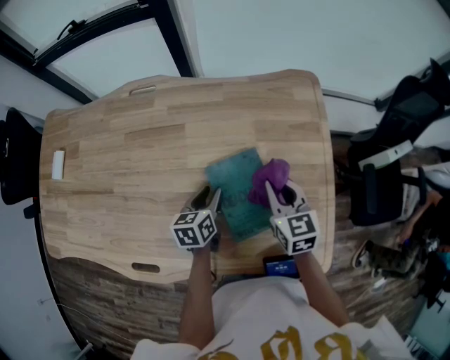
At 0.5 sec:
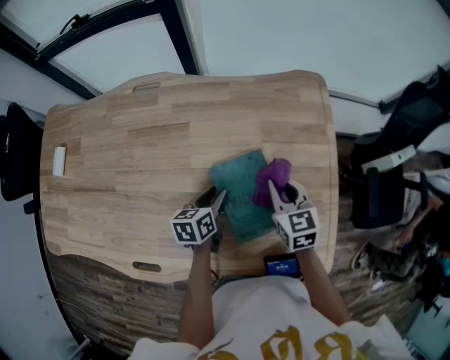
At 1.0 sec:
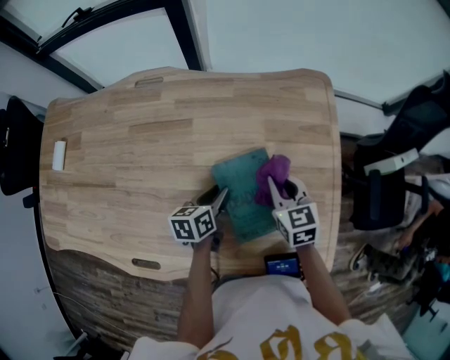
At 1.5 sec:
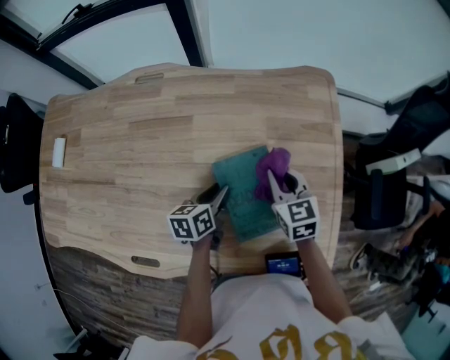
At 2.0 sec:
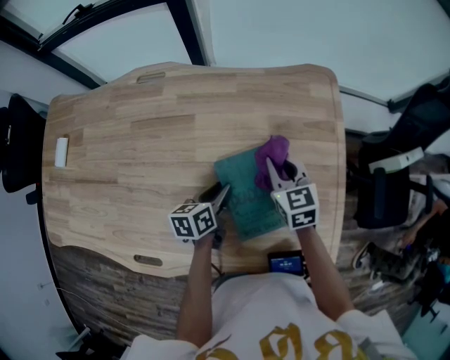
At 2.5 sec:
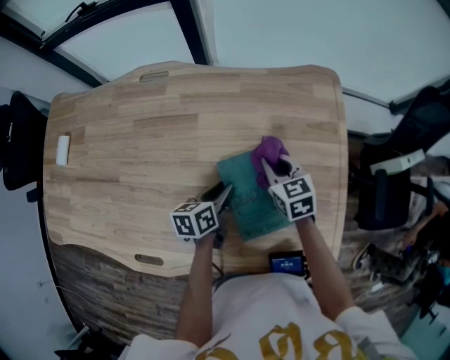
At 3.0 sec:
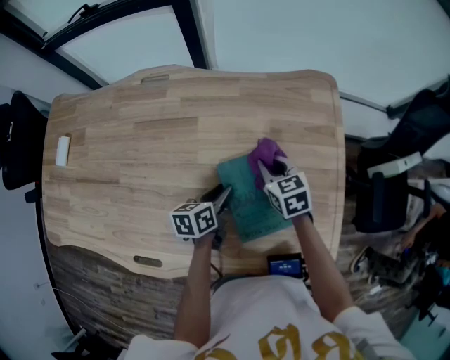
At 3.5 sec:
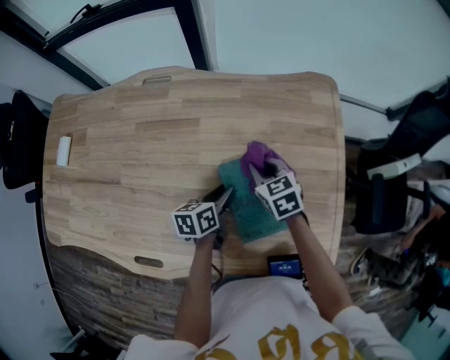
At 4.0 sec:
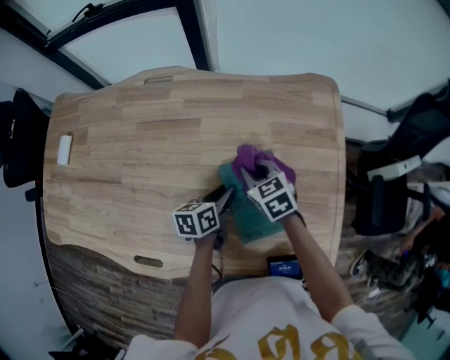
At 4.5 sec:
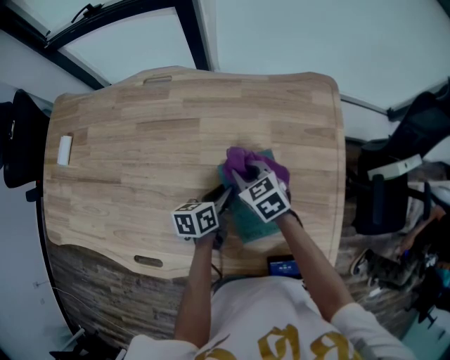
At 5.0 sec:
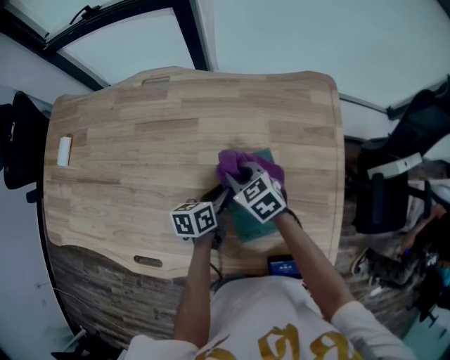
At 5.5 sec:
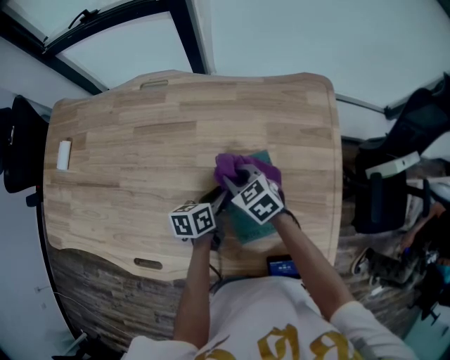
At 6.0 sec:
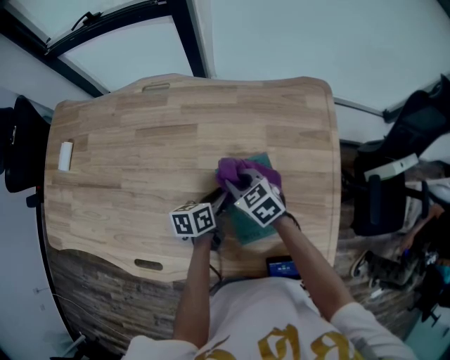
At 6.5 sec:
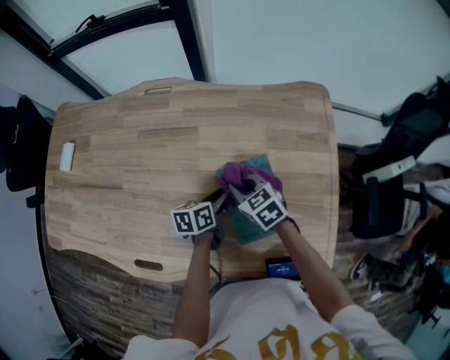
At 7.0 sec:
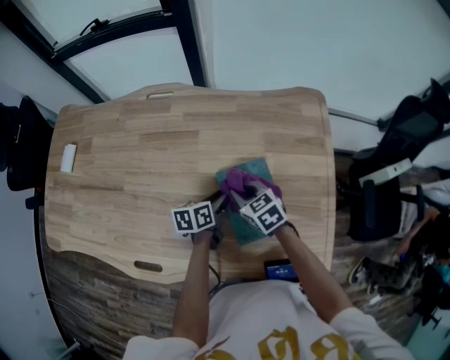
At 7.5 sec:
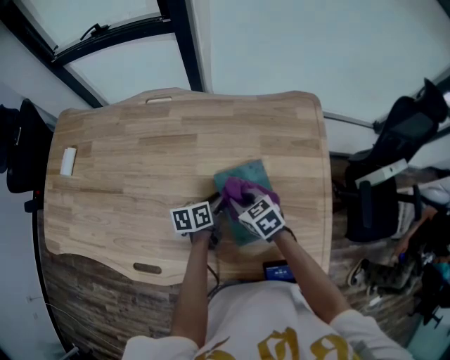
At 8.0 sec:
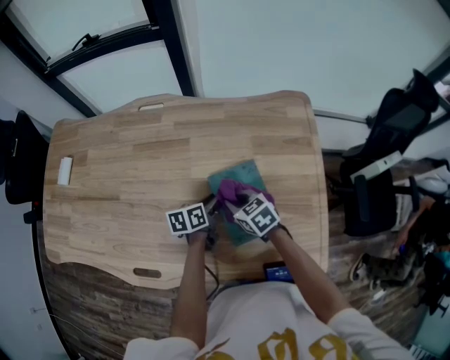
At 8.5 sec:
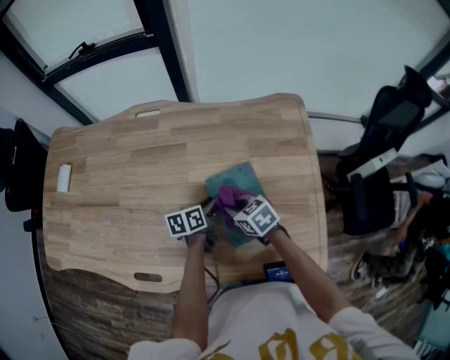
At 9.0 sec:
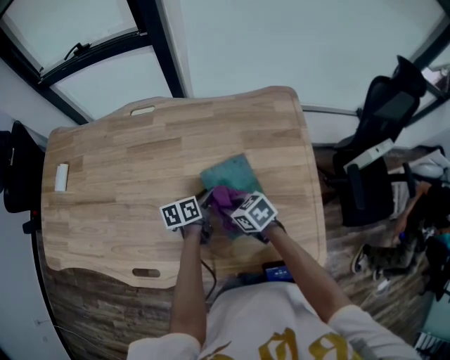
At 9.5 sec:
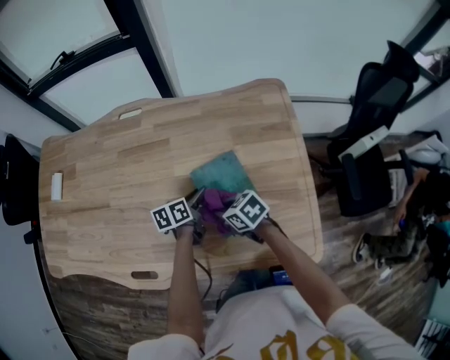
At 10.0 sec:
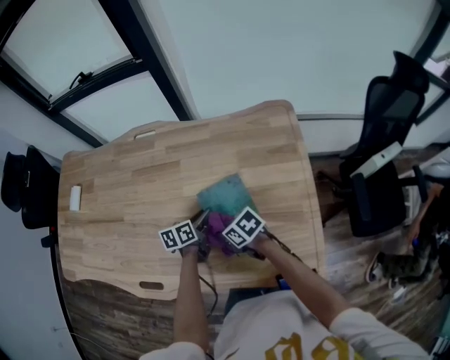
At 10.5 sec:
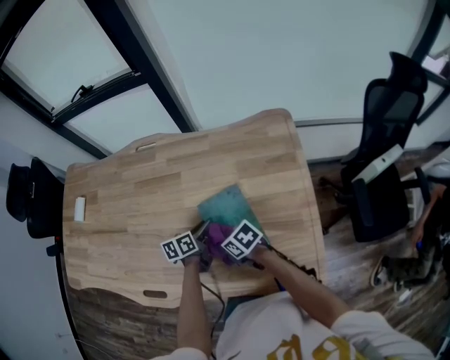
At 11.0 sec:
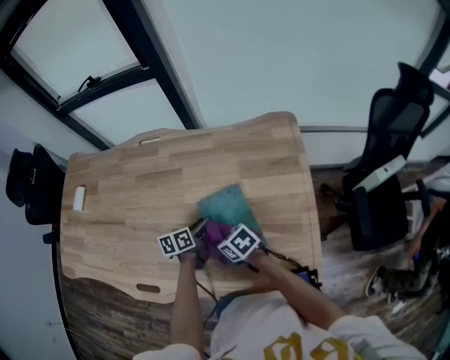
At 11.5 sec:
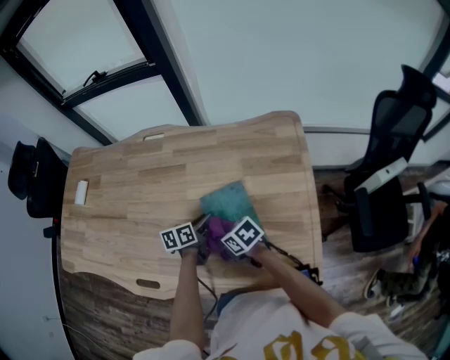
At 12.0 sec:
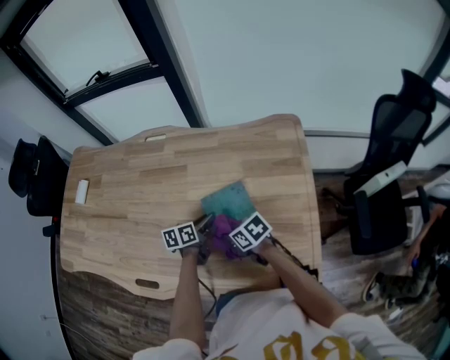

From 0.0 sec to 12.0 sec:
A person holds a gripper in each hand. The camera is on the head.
From 0.0 sec to 2.0 sec: The right gripper travels forward by some 5 cm.
From 2.0 sec to 4.0 sec: The right gripper goes approximately 10 cm to the left.
From 4.0 sec to 6.0 sec: There are only small adjustments of the grippers.
From 6.0 sec to 8.0 sec: The right gripper changes place by approximately 5 cm.
From 8.0 sec to 10.0 sec: The right gripper is displaced backward by about 5 cm, and turns by approximately 20 degrees.
From 10.0 sec to 12.0 sec: The grippers make only small movements.

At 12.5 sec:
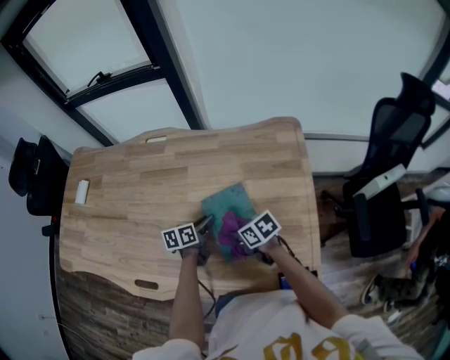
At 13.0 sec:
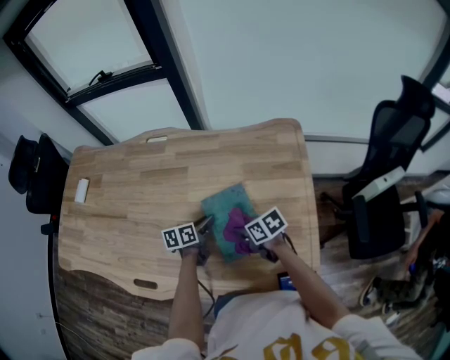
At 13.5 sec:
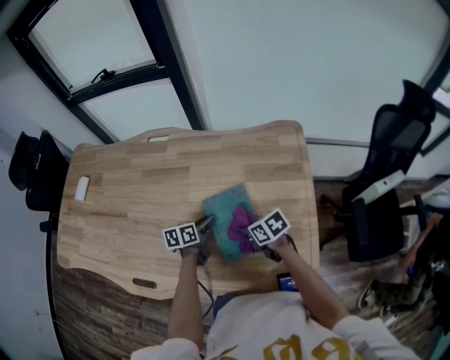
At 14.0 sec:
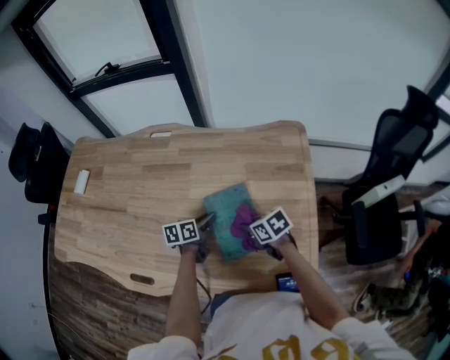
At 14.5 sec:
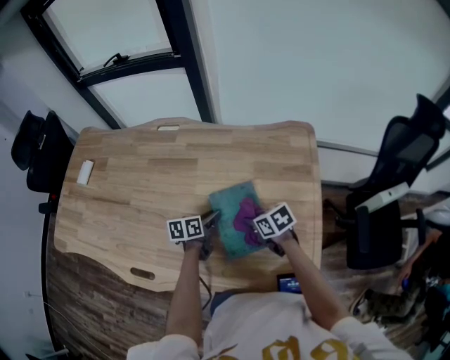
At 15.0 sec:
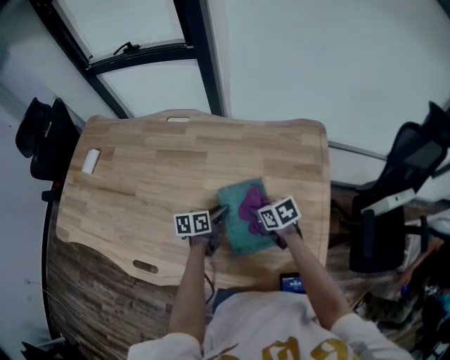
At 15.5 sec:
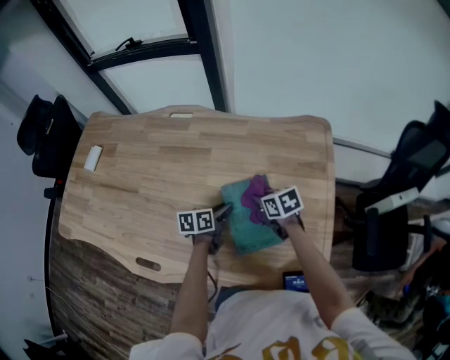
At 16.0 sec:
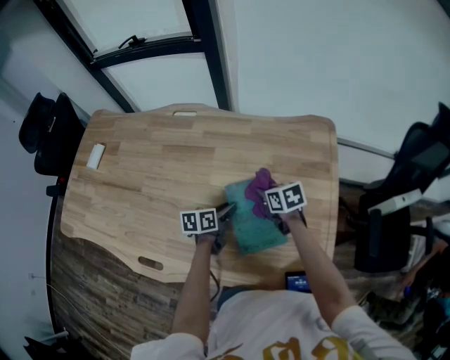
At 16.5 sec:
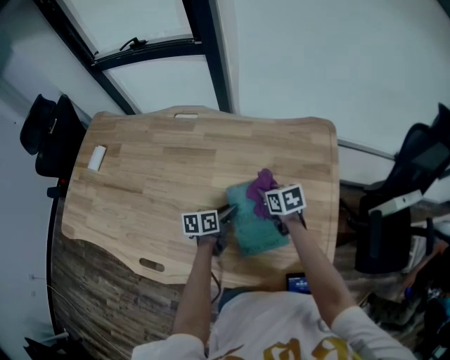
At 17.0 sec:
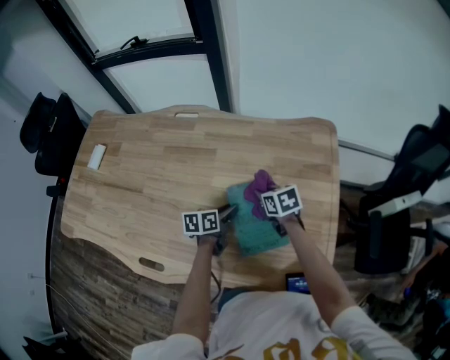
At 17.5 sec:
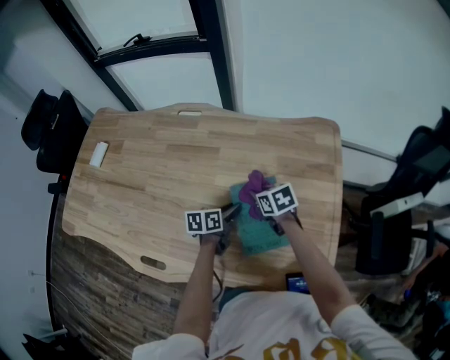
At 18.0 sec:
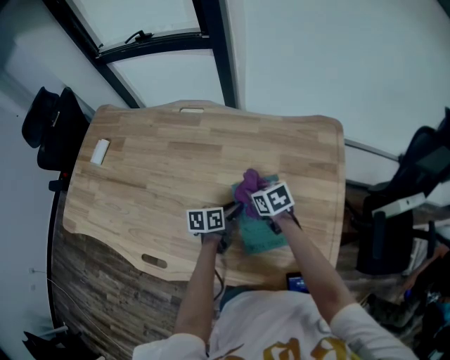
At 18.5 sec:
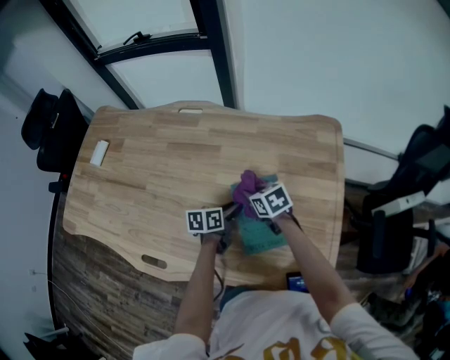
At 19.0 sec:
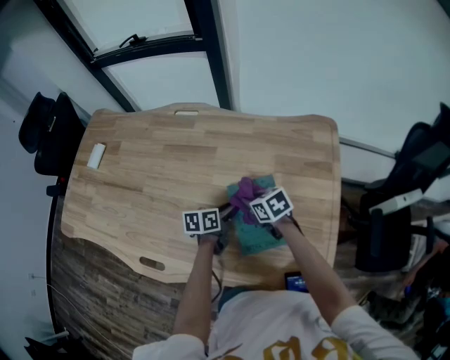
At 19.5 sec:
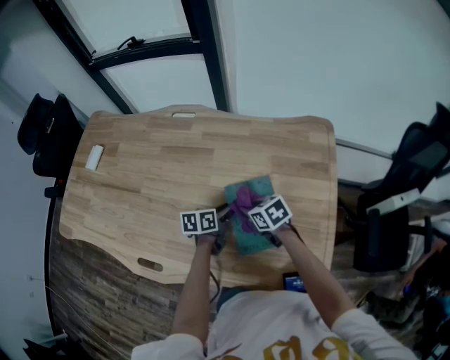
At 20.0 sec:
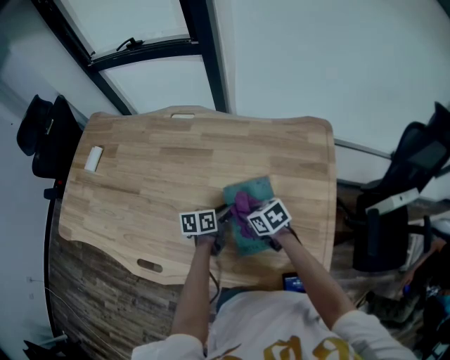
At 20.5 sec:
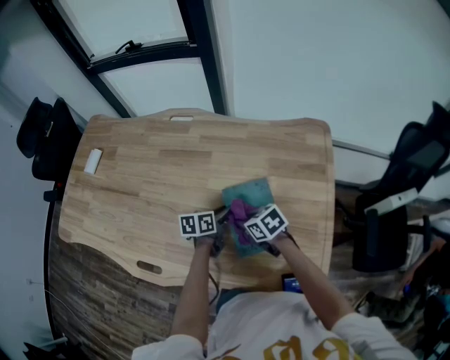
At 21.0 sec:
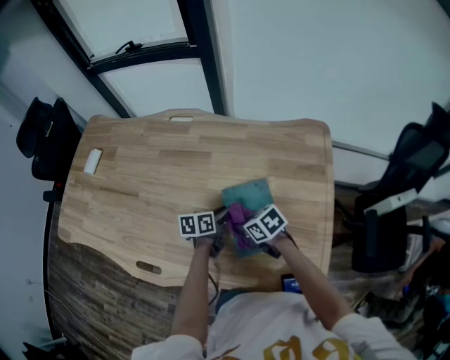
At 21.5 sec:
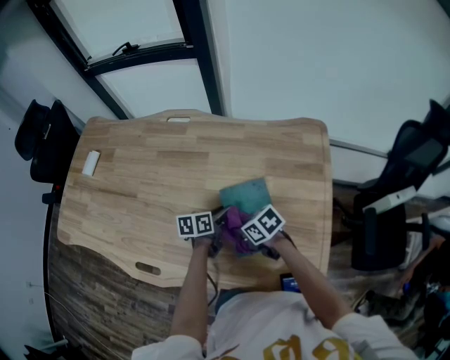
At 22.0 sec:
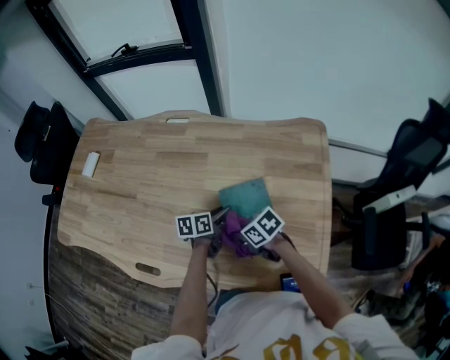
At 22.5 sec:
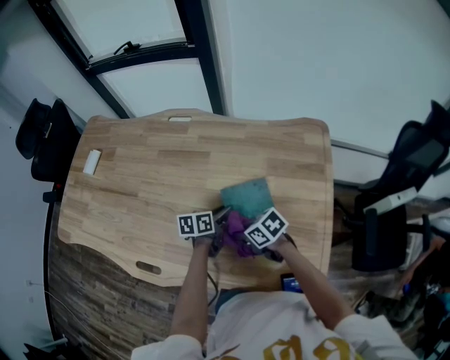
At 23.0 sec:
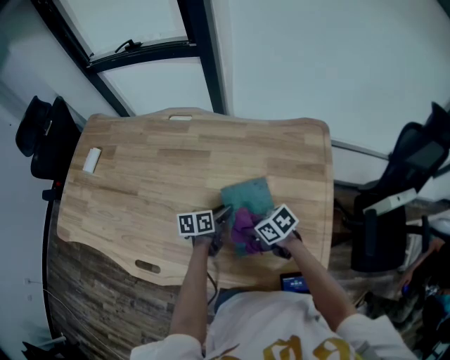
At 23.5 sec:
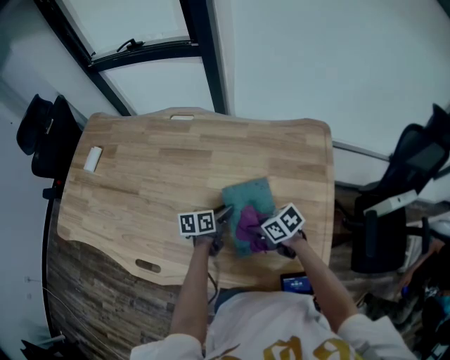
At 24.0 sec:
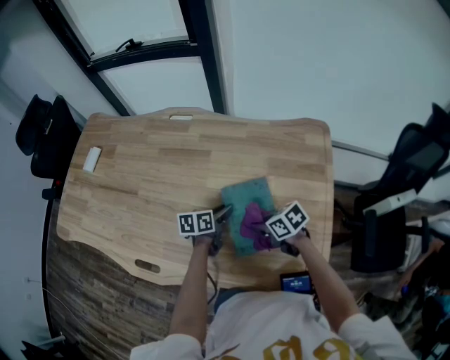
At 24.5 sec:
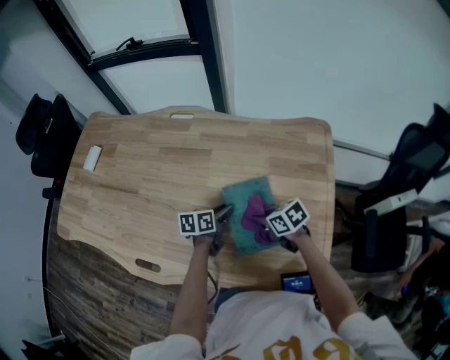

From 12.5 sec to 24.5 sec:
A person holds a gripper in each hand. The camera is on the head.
From 12.5 sec to 14.5 sec: The right gripper moves roughly 5 cm.
From 14.5 sec to 16.5 sec: The right gripper is displaced forward by approximately 10 cm.
From 16.5 sec to 18.5 sec: The right gripper travels to the left by about 5 cm.
From 18.5 sec to 20.5 sec: The right gripper moves backward, approximately 10 cm.
From 20.5 sec to 22.5 sec: The grippers move only a little.
From 22.5 sec to 24.5 sec: The right gripper ends up about 10 cm from where it was.

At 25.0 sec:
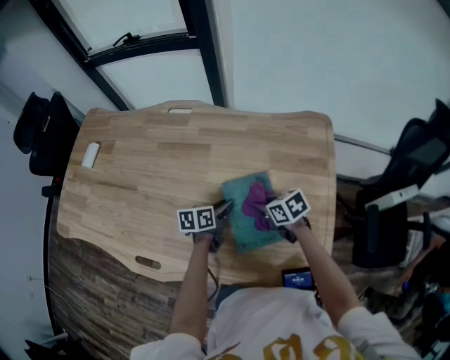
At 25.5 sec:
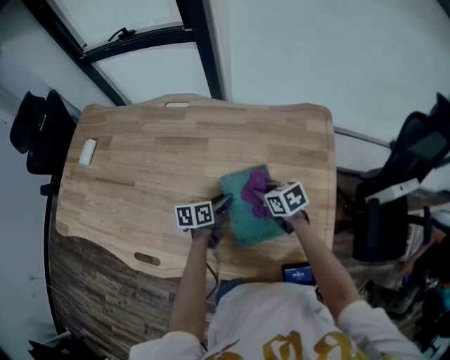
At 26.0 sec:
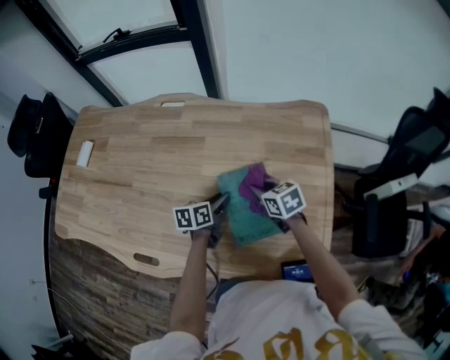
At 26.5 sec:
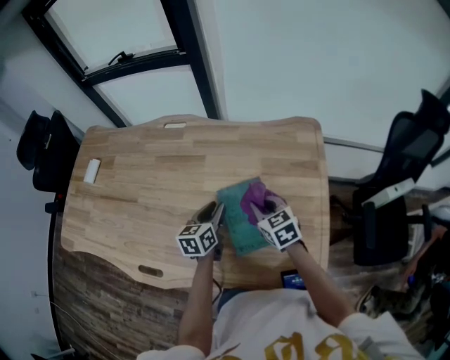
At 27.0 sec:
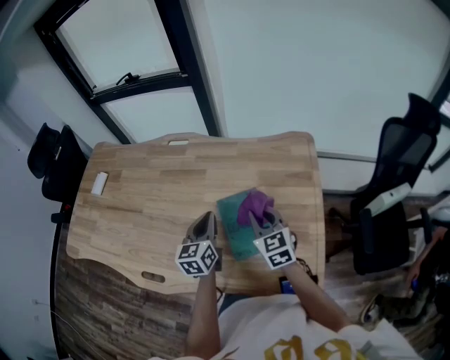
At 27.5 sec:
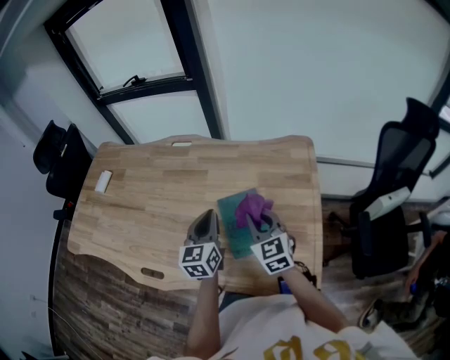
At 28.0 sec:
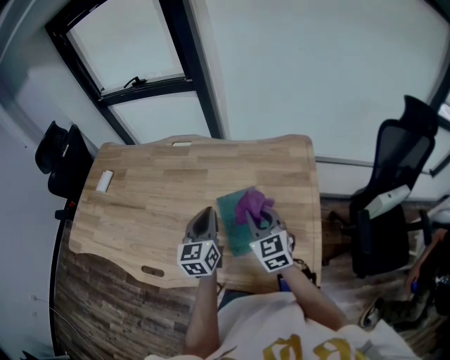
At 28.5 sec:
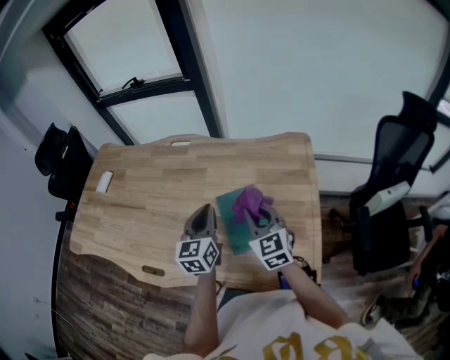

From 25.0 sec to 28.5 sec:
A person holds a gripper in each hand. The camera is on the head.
From 25.0 sec to 27.0 sec: The two grippers go about 15 cm upward. The left gripper rotates about 40 degrees, and closes its fingers. Meanwhile the right gripper rotates roughly 50 degrees.
From 27.0 sec to 28.5 sec: The left gripper moves upward, some 5 cm; the right gripper shifts by about 5 cm.
